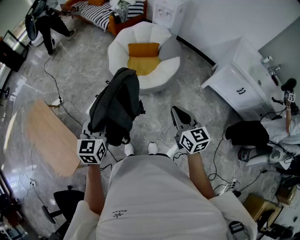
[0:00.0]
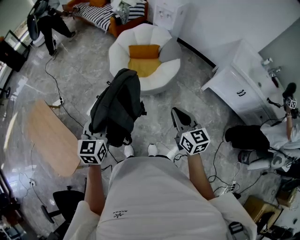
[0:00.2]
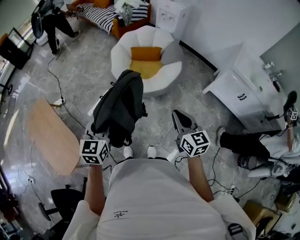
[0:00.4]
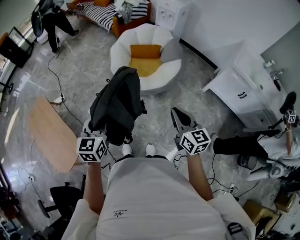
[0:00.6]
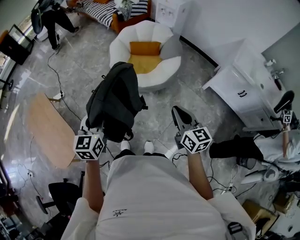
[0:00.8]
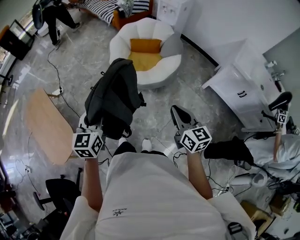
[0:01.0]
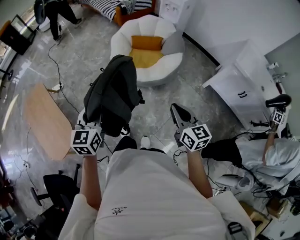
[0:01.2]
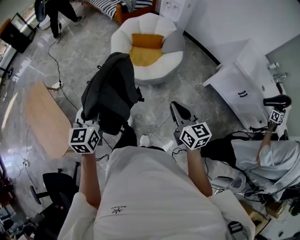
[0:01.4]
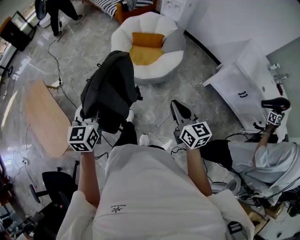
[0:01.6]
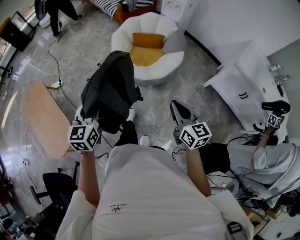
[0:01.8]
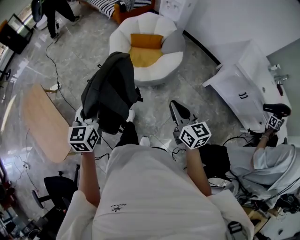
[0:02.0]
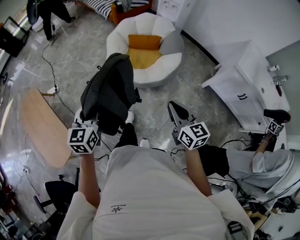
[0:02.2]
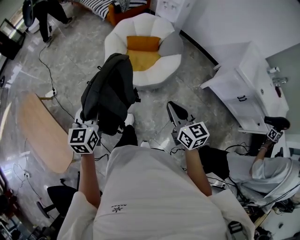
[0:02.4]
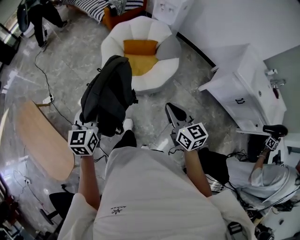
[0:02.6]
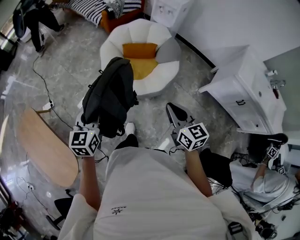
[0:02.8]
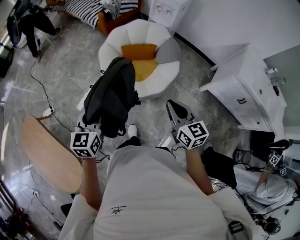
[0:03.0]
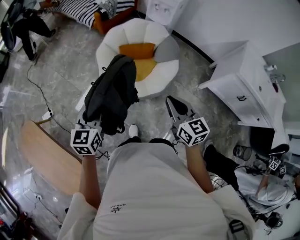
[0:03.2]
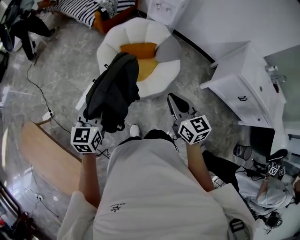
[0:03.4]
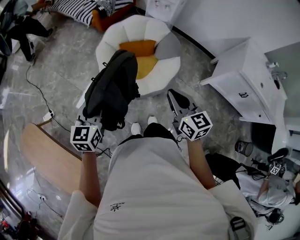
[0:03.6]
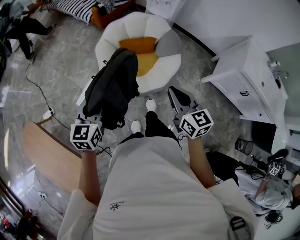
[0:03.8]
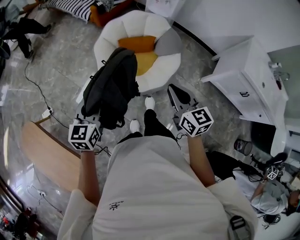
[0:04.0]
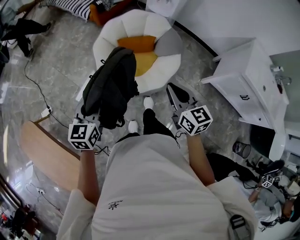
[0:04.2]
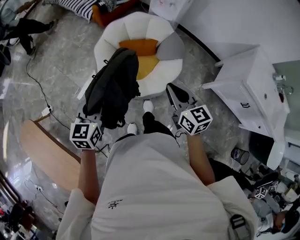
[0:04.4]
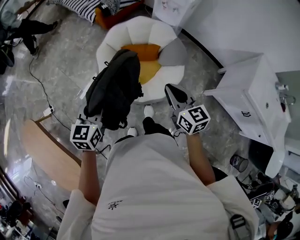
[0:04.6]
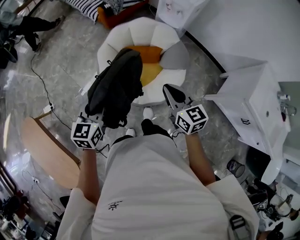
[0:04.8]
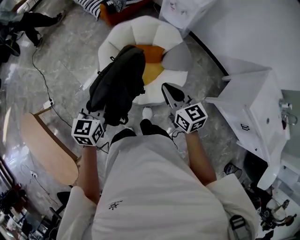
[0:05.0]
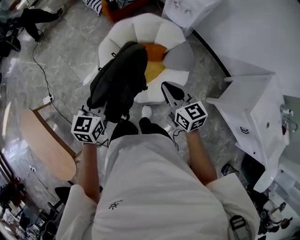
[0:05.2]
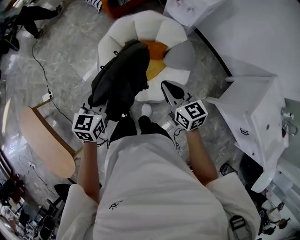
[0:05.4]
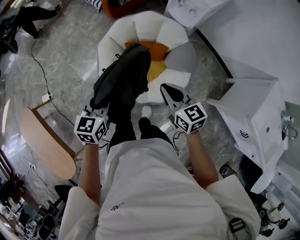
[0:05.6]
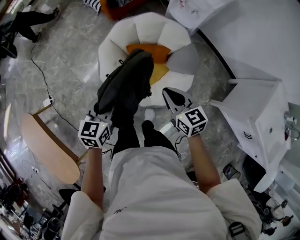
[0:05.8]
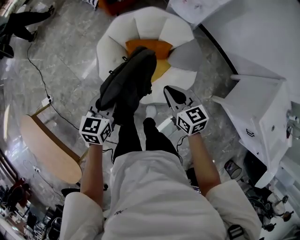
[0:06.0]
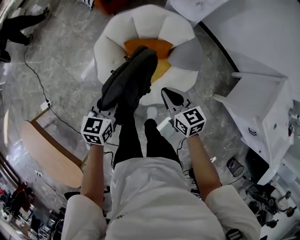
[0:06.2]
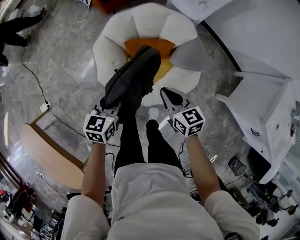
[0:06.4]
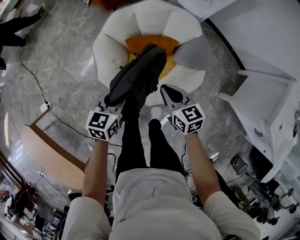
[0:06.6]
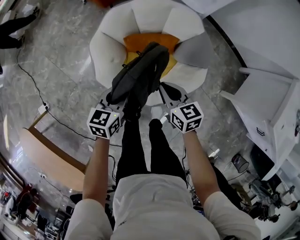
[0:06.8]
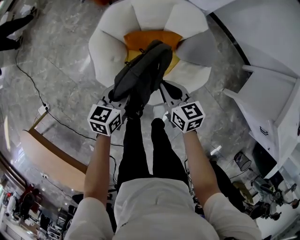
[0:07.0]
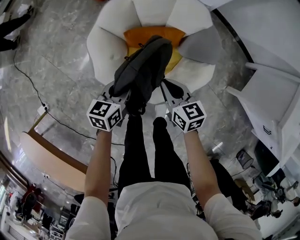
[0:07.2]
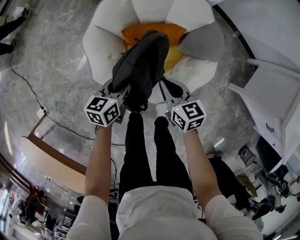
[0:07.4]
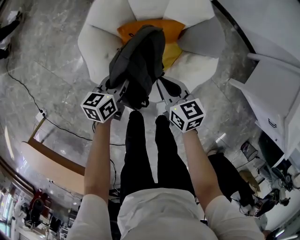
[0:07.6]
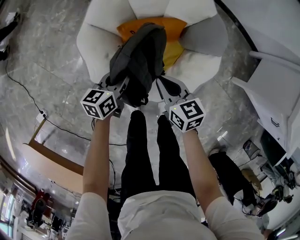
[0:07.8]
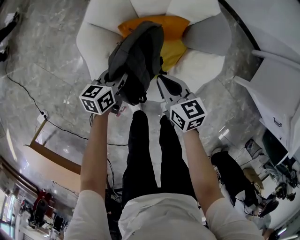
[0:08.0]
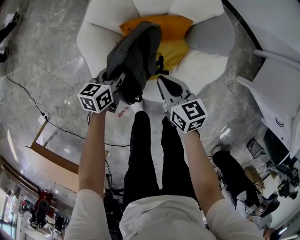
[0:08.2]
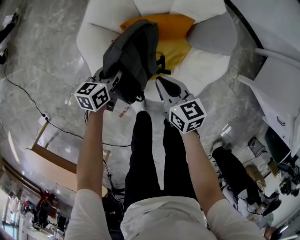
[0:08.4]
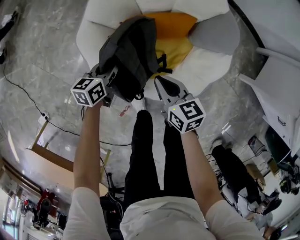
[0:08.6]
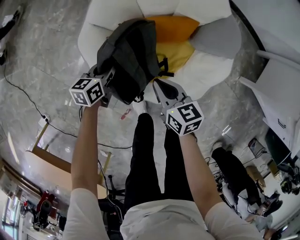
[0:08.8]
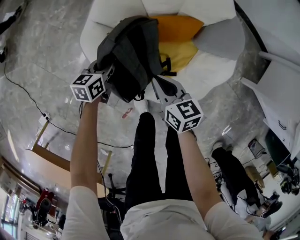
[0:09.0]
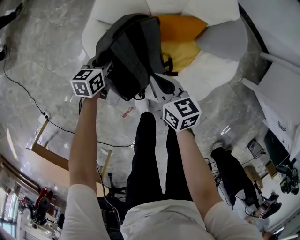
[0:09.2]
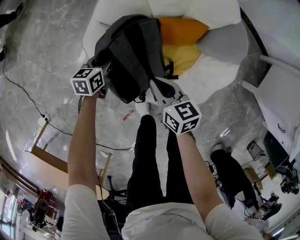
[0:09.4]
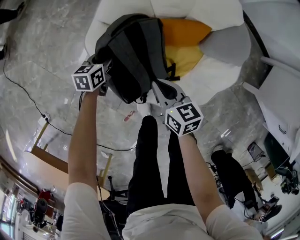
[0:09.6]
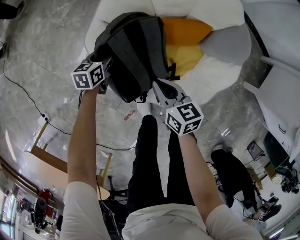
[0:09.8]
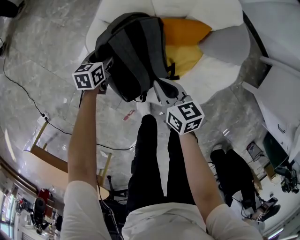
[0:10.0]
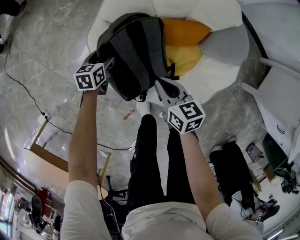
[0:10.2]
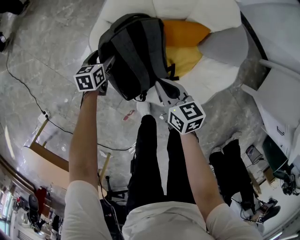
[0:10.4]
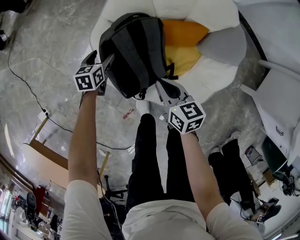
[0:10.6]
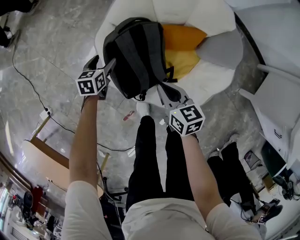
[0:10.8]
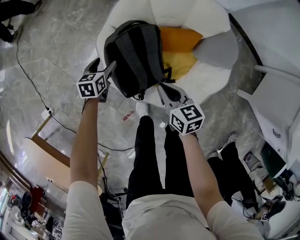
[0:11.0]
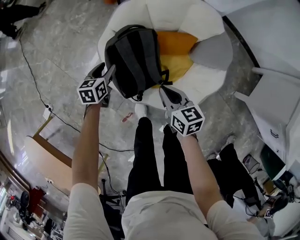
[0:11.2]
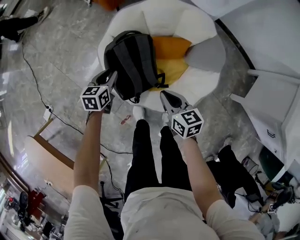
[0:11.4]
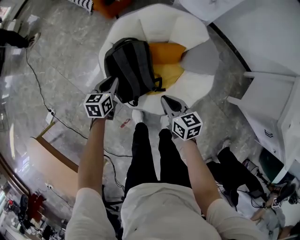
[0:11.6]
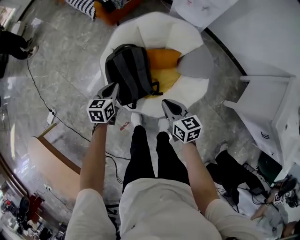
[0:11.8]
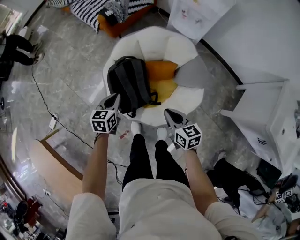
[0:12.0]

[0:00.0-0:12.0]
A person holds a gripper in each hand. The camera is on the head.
0:00.0 to 0:01.6: The right gripper heads to the right, covering about 5 cm.
0:01.6 to 0:03.0: Both grippers move forward, approximately 25 cm.
0:03.0 to 0:04.4: The two grippers go roughly 15 cm forward.
0:04.4 to 0:06.0: The right gripper is displaced forward and downward by about 25 cm. The left gripper moves forward, downward and to the right, roughly 20 cm.
0:06.0 to 0:07.6: The left gripper travels downward and forward by approximately 30 cm, and swivels about 20 degrees. The right gripper goes about 25 cm downward and to the left.
0:07.6 to 0:09.0: The right gripper travels downward and to the left by about 10 cm; the left gripper moves downward, to the left and forward, approximately 15 cm.
0:09.0 to 0:10.4: The left gripper heads to the left, covering approximately 10 cm, and opens up.
0:10.4 to 0:12.0: The right gripper is displaced upward, to the right and backward by approximately 30 cm. The left gripper goes some 35 cm upward and backward, and closes up.

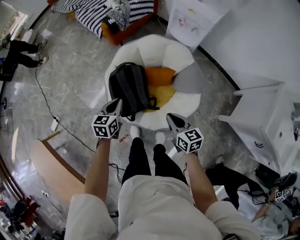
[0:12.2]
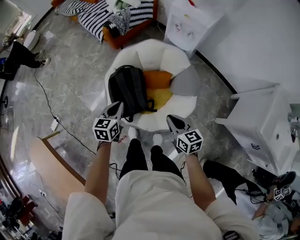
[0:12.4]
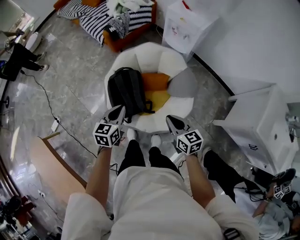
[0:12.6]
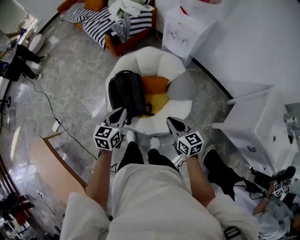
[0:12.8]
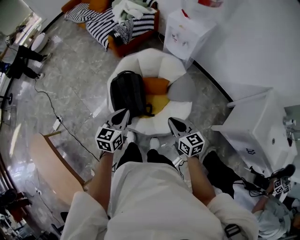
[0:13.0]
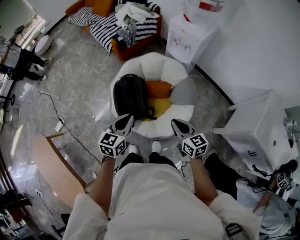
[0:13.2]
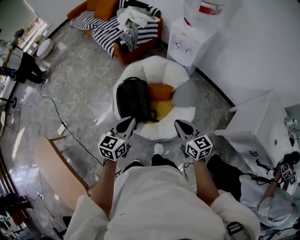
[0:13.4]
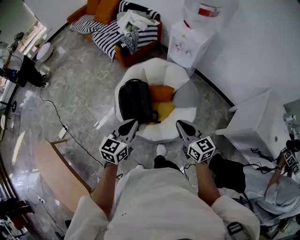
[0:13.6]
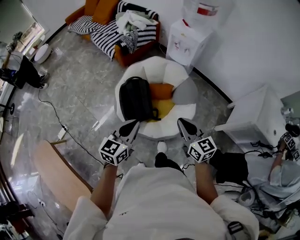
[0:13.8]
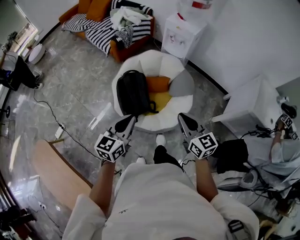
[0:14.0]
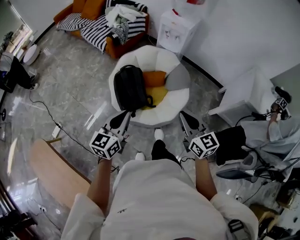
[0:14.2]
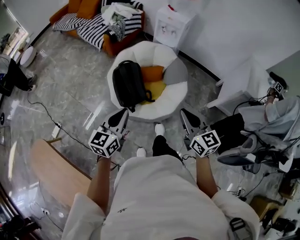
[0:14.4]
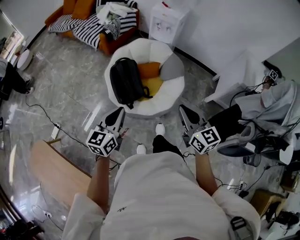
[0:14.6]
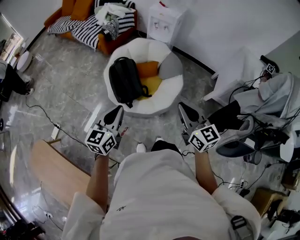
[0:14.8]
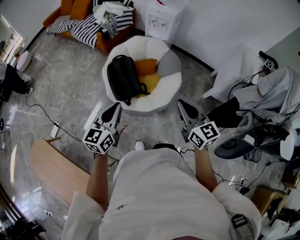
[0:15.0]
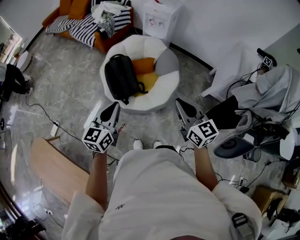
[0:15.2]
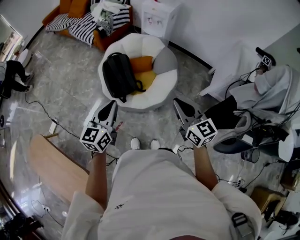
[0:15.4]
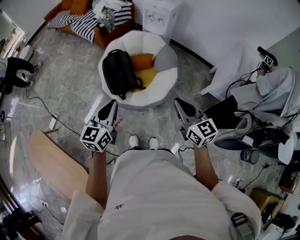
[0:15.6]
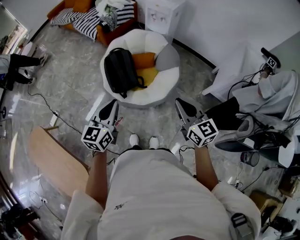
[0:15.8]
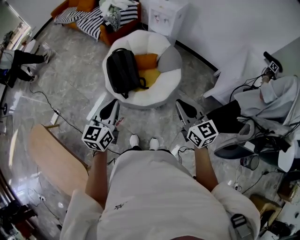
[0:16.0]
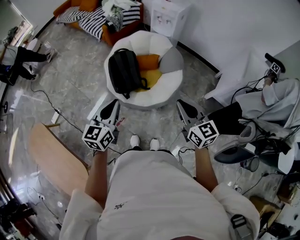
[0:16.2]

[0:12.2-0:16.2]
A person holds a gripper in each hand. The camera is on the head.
0:12.2 to 0:13.6: The two grippers go roughly 25 cm upward and backward. The left gripper changes its angle by some 20 degrees.
0:13.6 to 0:14.8: The left gripper shifts roughly 20 cm backward and to the left. The right gripper is displaced backward and upward by some 25 cm.
0:14.8 to 0:16.2: Both grippers travel together to the right, roughly 5 cm.

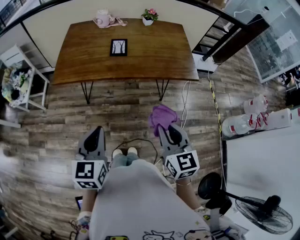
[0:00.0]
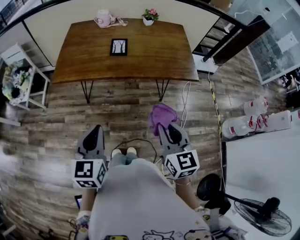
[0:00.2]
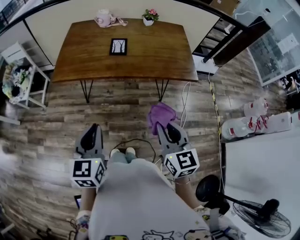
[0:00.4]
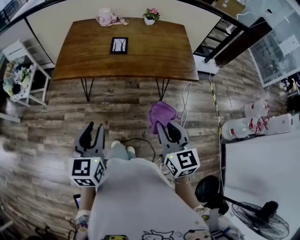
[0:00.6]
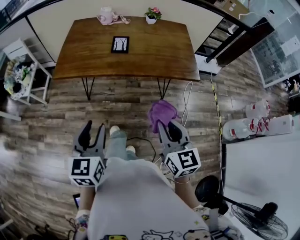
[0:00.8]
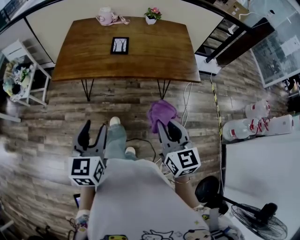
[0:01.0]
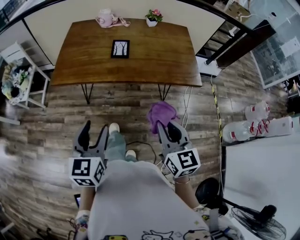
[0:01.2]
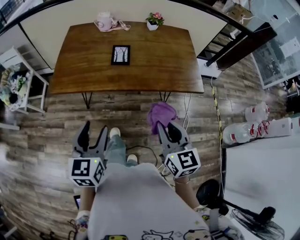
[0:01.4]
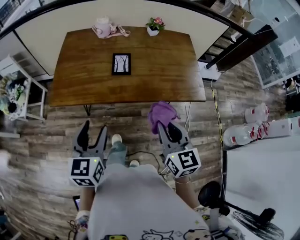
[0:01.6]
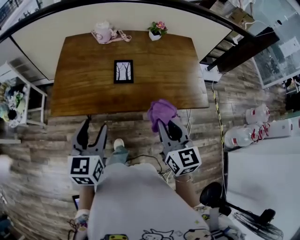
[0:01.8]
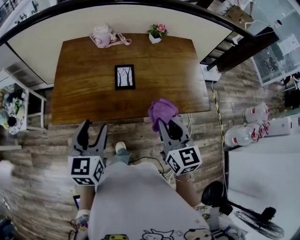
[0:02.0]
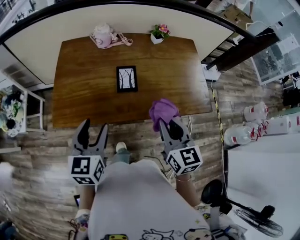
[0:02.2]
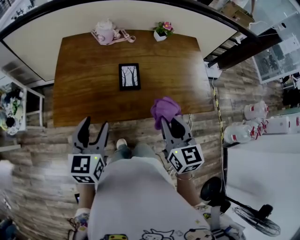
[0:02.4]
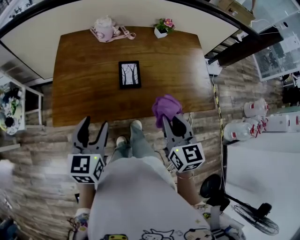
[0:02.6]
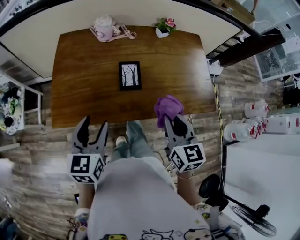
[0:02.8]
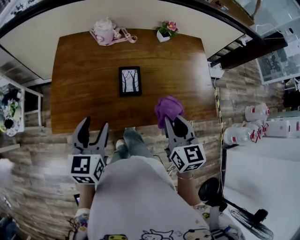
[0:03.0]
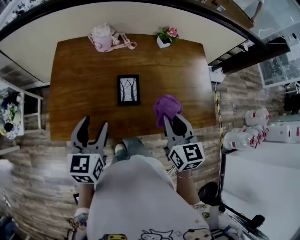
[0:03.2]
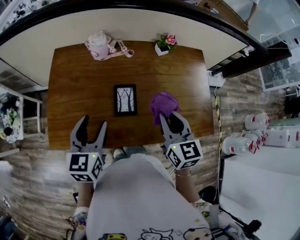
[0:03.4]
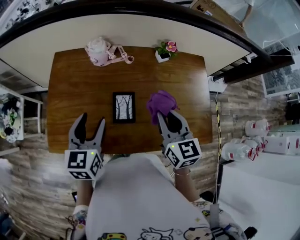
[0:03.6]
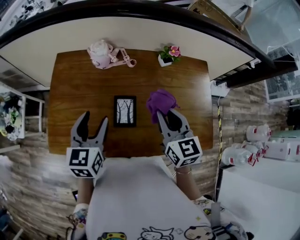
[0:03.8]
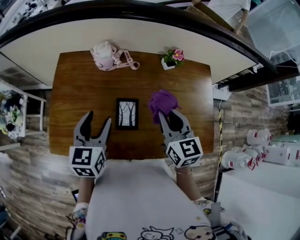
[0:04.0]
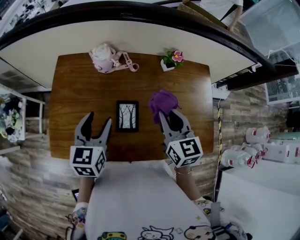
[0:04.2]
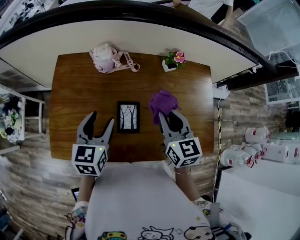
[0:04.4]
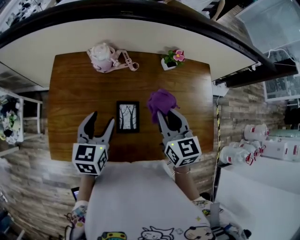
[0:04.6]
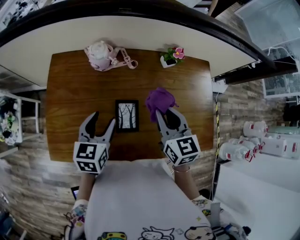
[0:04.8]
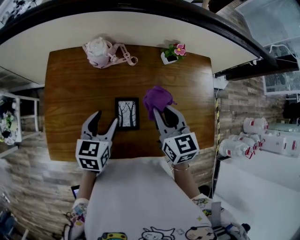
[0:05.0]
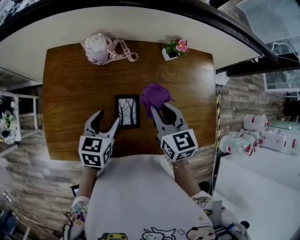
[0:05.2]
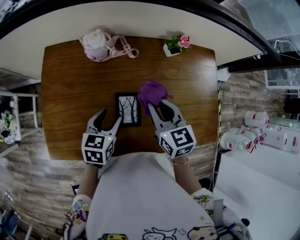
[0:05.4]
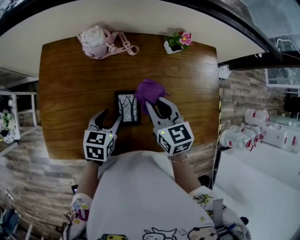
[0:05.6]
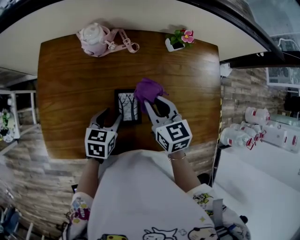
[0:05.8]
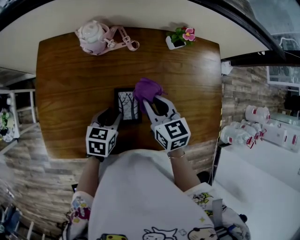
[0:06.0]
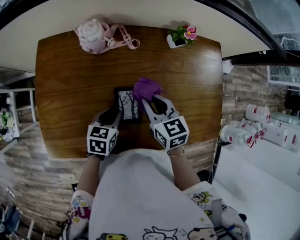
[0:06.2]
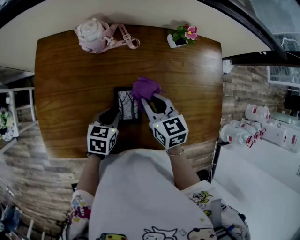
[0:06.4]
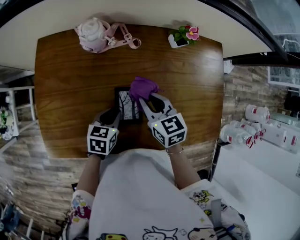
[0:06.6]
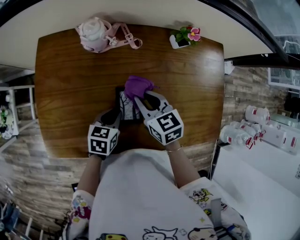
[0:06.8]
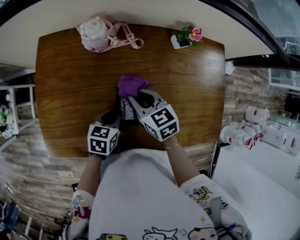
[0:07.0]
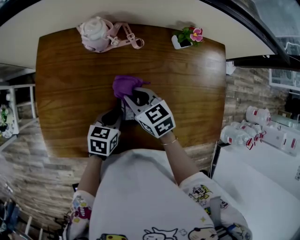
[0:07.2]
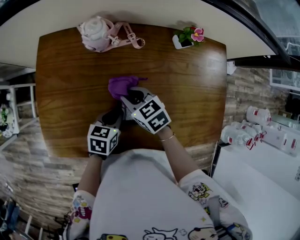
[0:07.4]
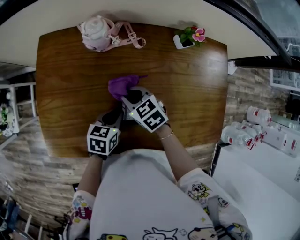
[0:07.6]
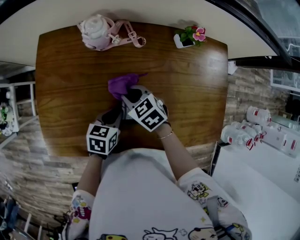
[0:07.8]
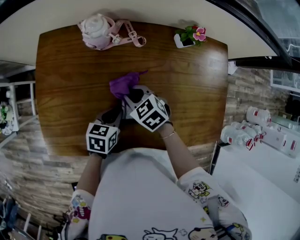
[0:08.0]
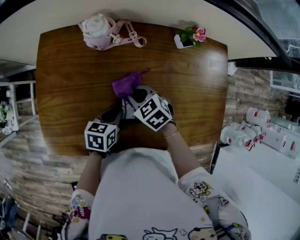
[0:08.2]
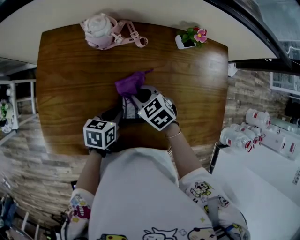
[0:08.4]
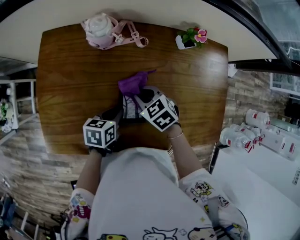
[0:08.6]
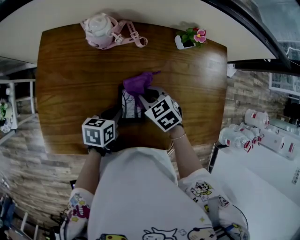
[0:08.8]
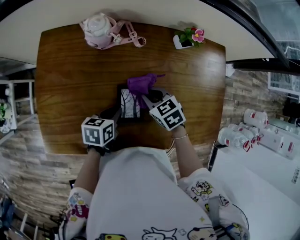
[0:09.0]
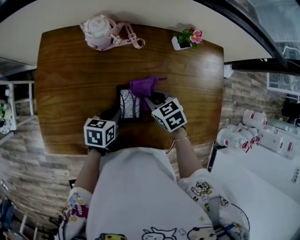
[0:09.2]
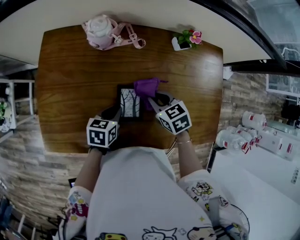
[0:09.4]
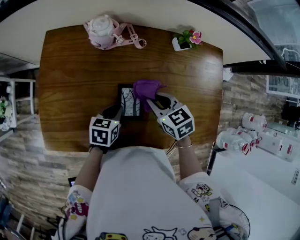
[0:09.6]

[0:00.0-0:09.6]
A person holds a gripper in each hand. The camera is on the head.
0:00.0 to 0:01.6: The grippers both shift forward by about 15 cm. The left gripper opens up.
0:01.6 to 0:03.2: Both grippers travel together forward, roughly 25 cm.
0:03.2 to 0:04.8: The two grippers go some 15 cm forward.
0:04.8 to 0:06.4: Both grippers move downward, roughly 15 cm. The left gripper changes its angle by approximately 20 degrees, and closes.
0:06.4 to 0:08.0: The right gripper moves to the left and downward, approximately 10 cm, and swivels approximately 30 degrees.
0:08.0 to 0:09.6: The right gripper travels to the right and upward by some 10 cm.
